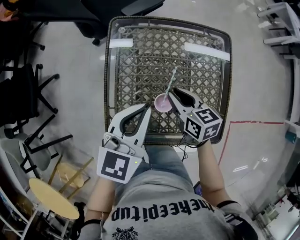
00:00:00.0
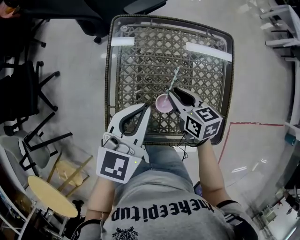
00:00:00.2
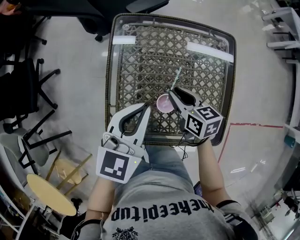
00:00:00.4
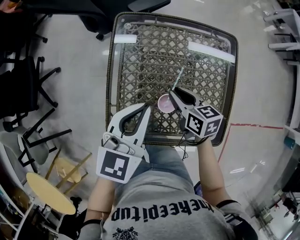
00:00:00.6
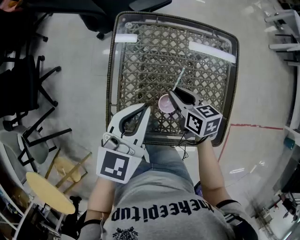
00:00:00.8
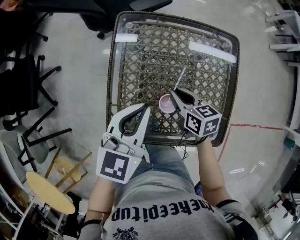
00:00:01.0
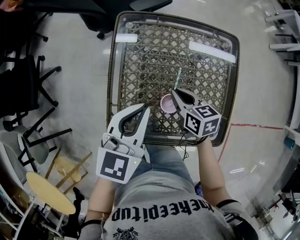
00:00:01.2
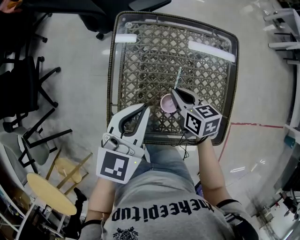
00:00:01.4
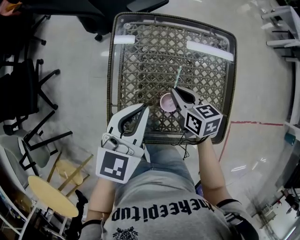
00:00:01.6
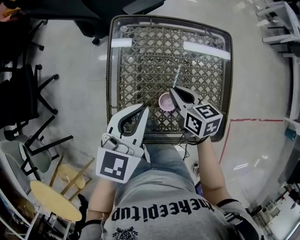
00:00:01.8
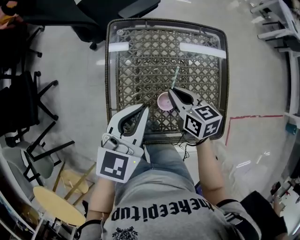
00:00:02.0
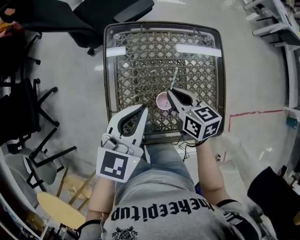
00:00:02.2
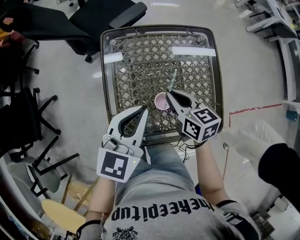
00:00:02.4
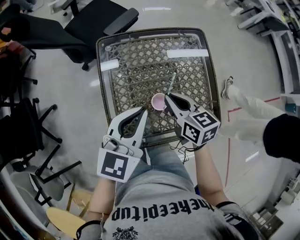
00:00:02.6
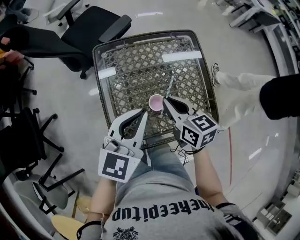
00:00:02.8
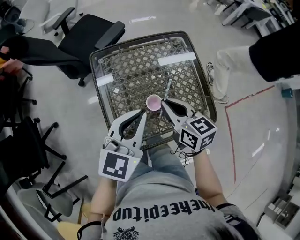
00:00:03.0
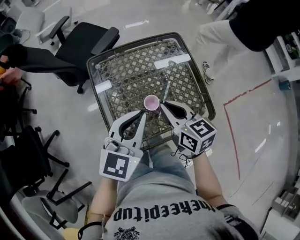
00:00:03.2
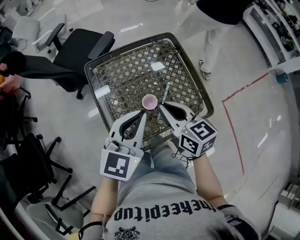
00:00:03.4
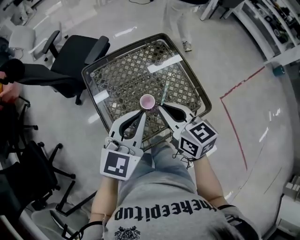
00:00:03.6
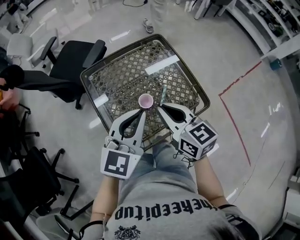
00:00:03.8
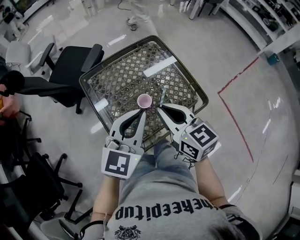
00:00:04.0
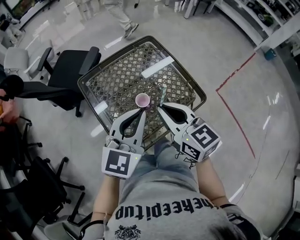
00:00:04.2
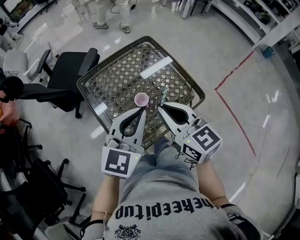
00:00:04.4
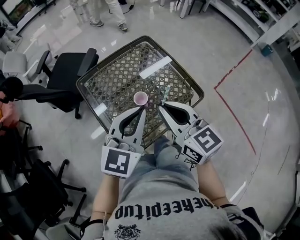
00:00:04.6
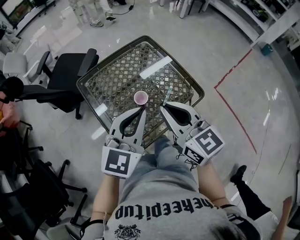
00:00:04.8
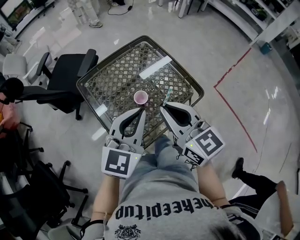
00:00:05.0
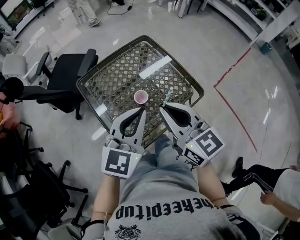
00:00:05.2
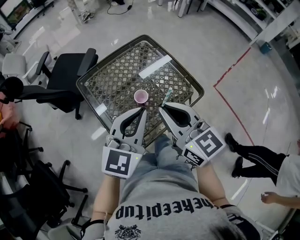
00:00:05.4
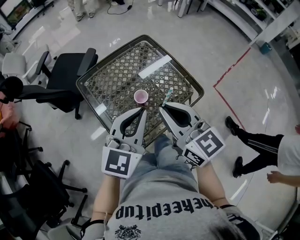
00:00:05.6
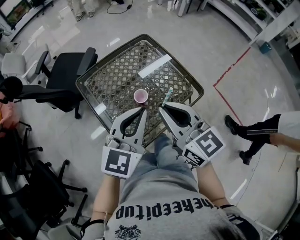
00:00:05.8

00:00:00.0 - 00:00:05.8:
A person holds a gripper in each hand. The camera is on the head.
00:00:00.0 - 00:00:01.4: The right gripper closes.
00:00:01.4 - 00:00:02.8: The right gripper moves upward, about 15 cm, and changes its angle by approximately 20 degrees. Meanwhile the left gripper shifts approximately 5 cm upward, and changes its angle by some 20 degrees.
00:00:02.8 - 00:00:04.4: The right gripper is displaced upward and backward by roughly 20 cm, and turns by roughly 30 degrees. Meanwhile the left gripper shifts approximately 10 cm upward and backward, and turns by approximately 20 degrees.
00:00:04.4 - 00:00:05.8: The grippers move only a little.

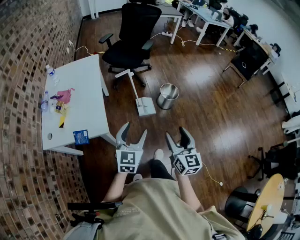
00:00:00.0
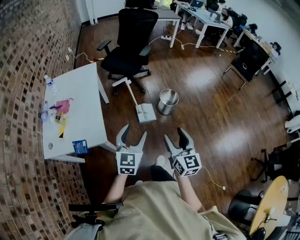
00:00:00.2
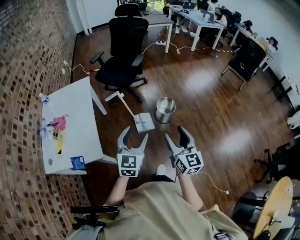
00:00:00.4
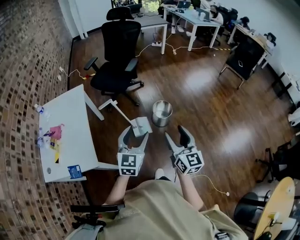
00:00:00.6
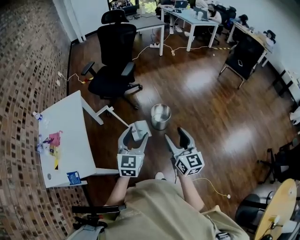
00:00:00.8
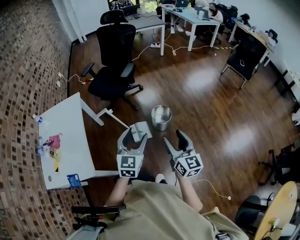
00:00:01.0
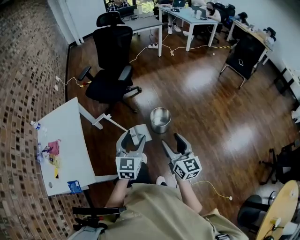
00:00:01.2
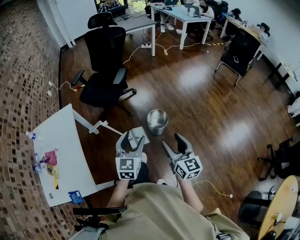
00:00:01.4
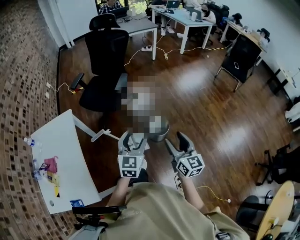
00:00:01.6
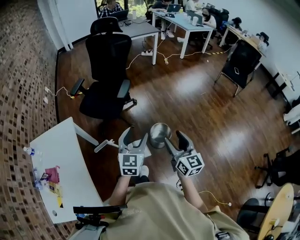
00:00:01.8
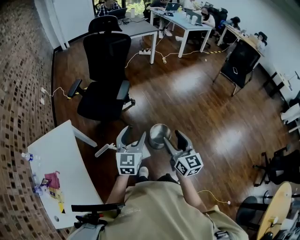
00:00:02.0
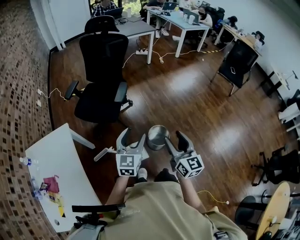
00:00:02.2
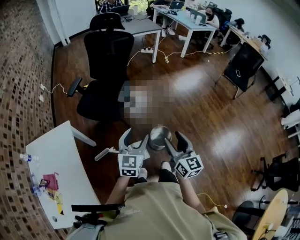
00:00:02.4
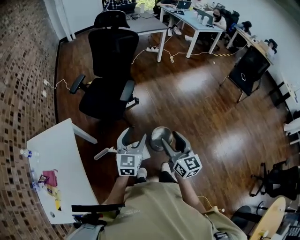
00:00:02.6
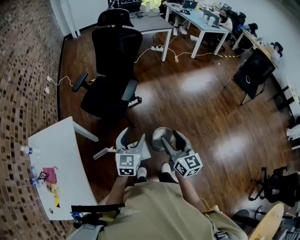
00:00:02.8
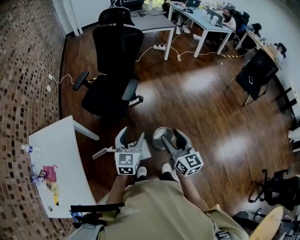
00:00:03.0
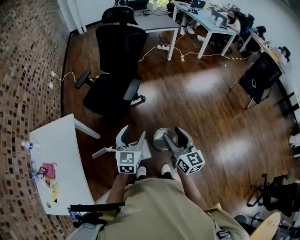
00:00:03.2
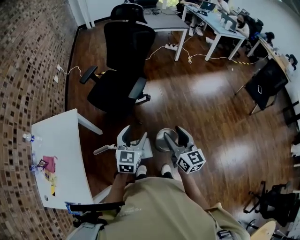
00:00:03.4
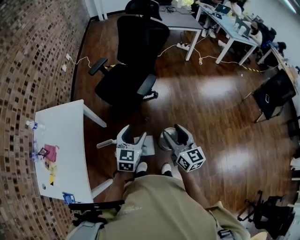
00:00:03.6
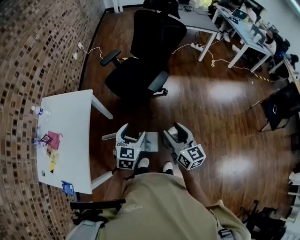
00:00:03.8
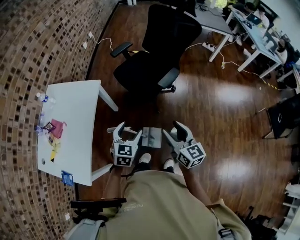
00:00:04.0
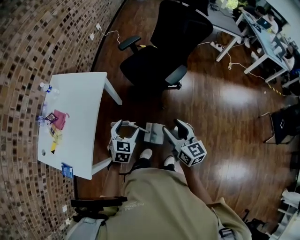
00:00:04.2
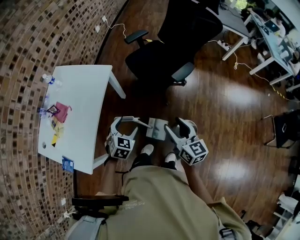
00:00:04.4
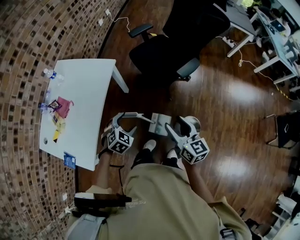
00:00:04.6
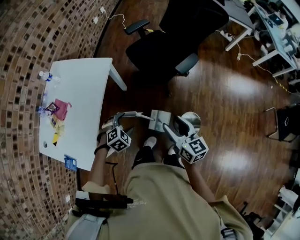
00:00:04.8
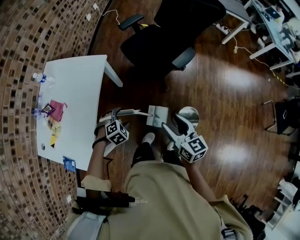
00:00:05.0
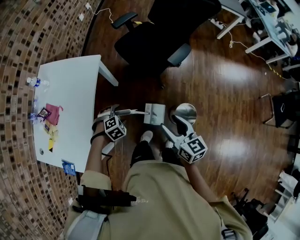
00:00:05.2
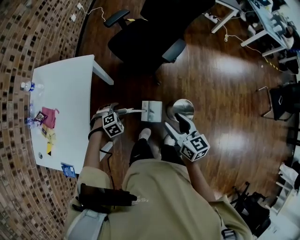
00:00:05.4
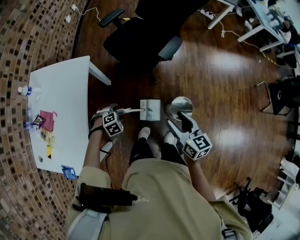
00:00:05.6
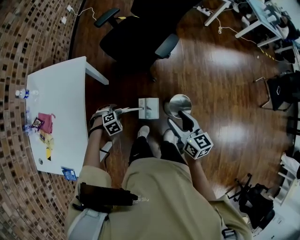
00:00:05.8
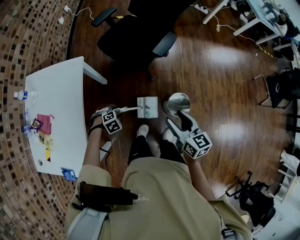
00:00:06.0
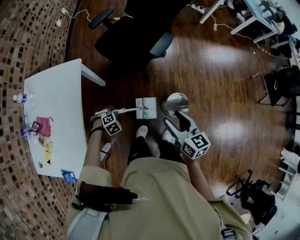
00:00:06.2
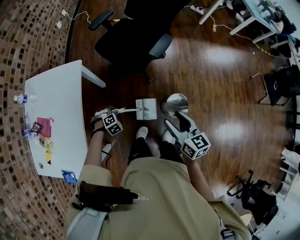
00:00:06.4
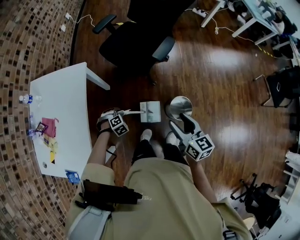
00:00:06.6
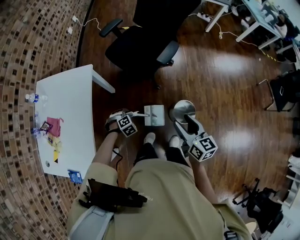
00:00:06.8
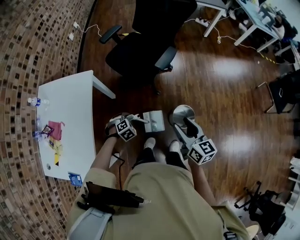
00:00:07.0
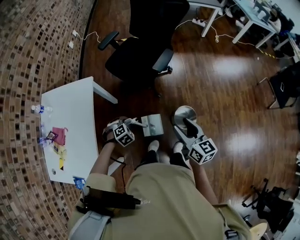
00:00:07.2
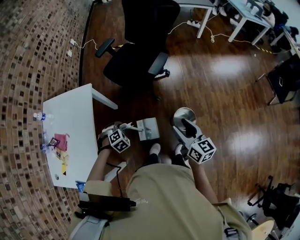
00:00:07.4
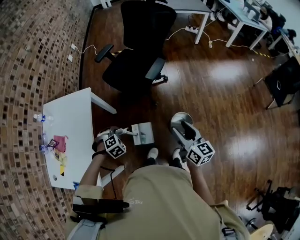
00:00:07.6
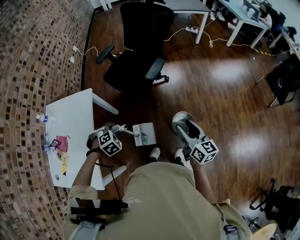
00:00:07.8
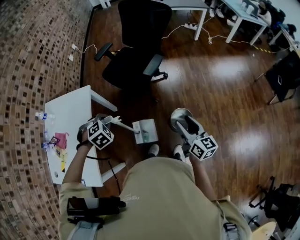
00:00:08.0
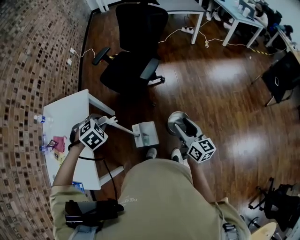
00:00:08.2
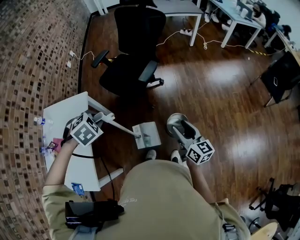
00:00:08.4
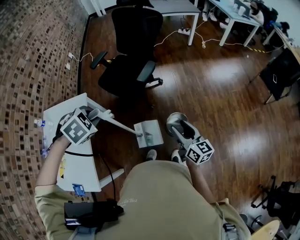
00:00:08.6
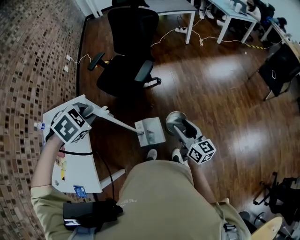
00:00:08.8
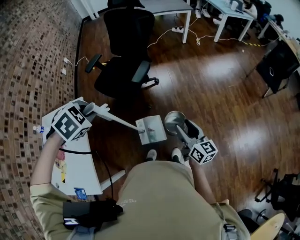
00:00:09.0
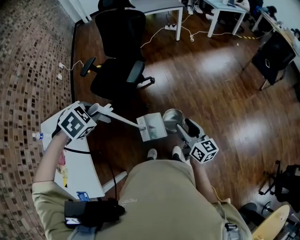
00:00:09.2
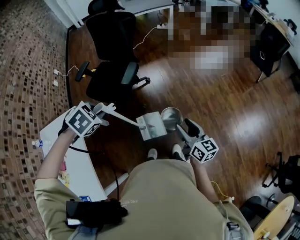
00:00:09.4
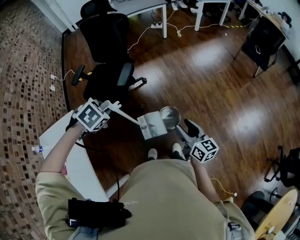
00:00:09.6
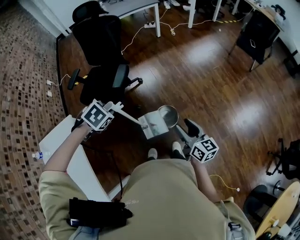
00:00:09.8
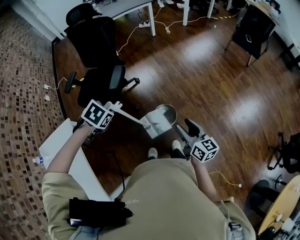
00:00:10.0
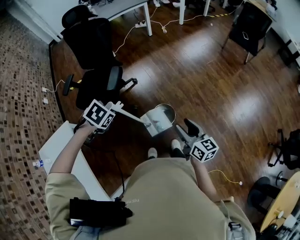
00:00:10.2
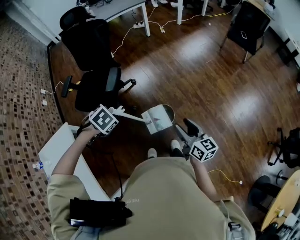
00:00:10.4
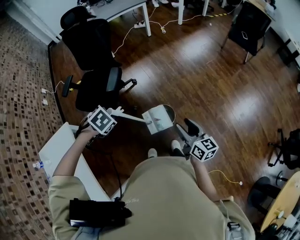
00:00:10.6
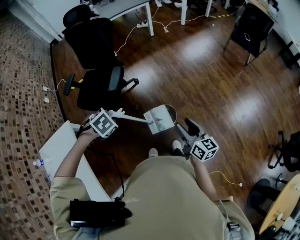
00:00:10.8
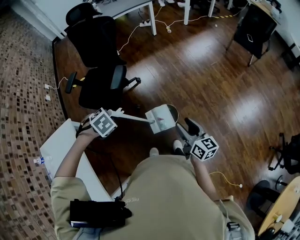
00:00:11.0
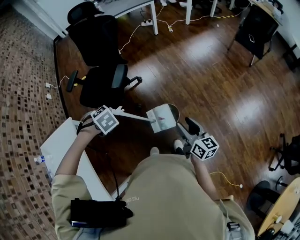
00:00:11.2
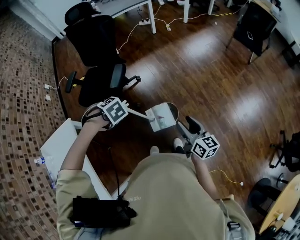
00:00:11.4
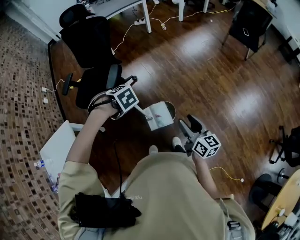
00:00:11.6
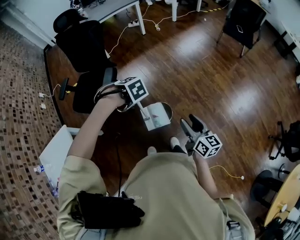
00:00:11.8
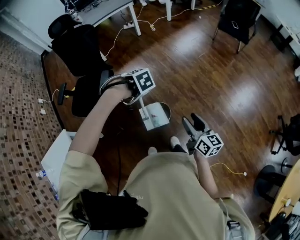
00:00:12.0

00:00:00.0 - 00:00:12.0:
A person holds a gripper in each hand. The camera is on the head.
00:00:00.0 - 00:00:01.6: Both grippers move forward and to the right, roughly 40 cm.
00:00:01.6 - 00:00:03.0: Both grippers move forward, roughly 20 cm.
00:00:03.0 - 00:00:04.4: The left gripper ends up about 25 cm from where it was, and rotates about 40 degrees; the right gripper changes place by roughly 20 cm, and swivels approximately 30 degrees.
00:00:04.4 - 00:00:06.0: The right gripper goes roughly 5 cm downward; the left gripper is displaced downward by approximately 20 cm, and tips its fingers downward by some 40 degrees.
00:00:06.0 - 00:00:07.6: The left gripper heads upward, covering approximately 15 cm, and closes up. Meanwhile the right gripper shifts by approximately 10 cm.
00:00:07.6 - 00:00:09.0: The right gripper travels to the right by about 10 cm. The left gripper is displaced upward by about 30 cm.
00:00:09.0 - 00:00:10.4: The right gripper changes place by some 10 cm. Meanwhile the left gripper shifts about 15 cm downward.
00:00:10.4 - 00:00:12.0: The left gripper shifts by some 15 cm, and swivels some 30 degrees; the right gripper ends up roughly 10 cm from where it was.

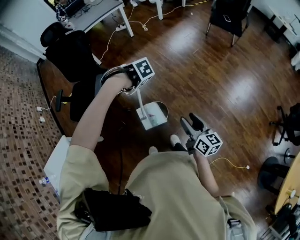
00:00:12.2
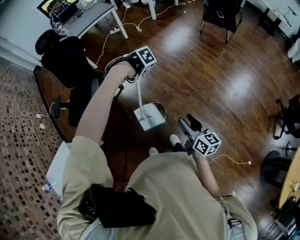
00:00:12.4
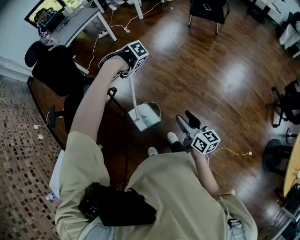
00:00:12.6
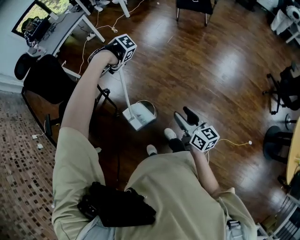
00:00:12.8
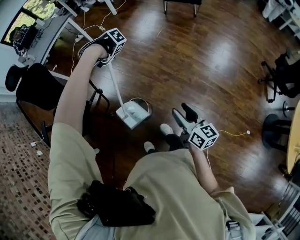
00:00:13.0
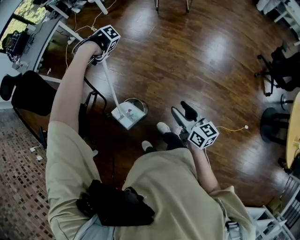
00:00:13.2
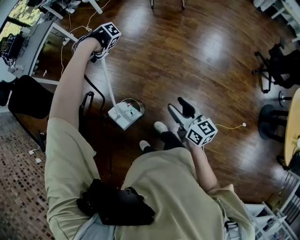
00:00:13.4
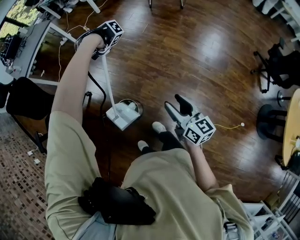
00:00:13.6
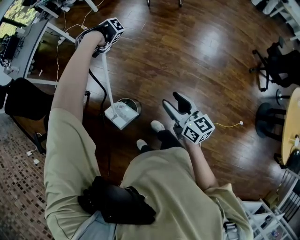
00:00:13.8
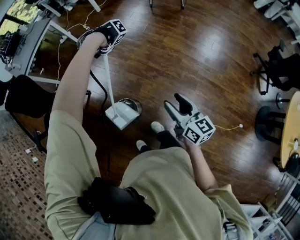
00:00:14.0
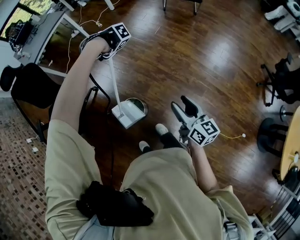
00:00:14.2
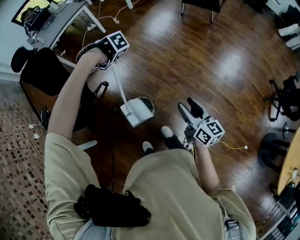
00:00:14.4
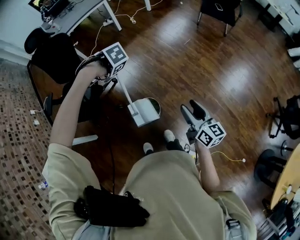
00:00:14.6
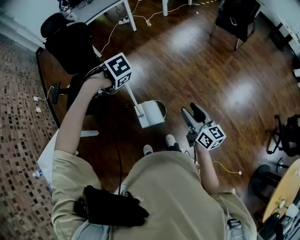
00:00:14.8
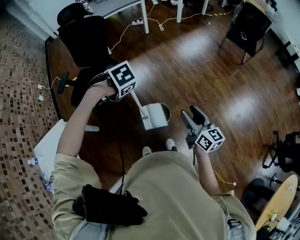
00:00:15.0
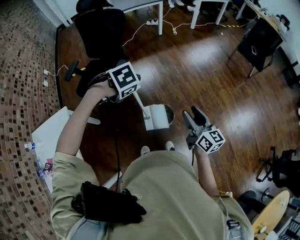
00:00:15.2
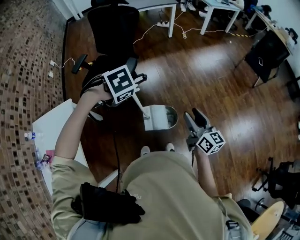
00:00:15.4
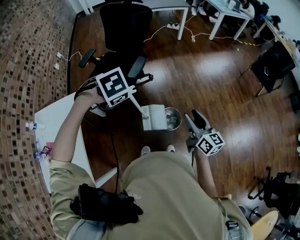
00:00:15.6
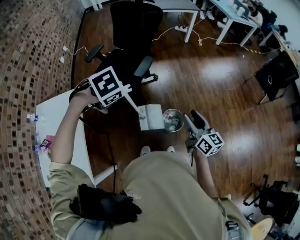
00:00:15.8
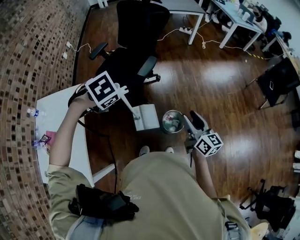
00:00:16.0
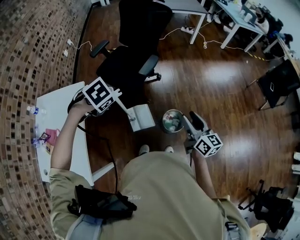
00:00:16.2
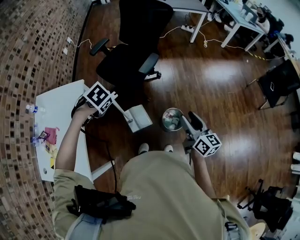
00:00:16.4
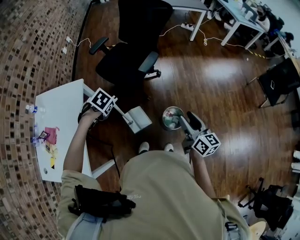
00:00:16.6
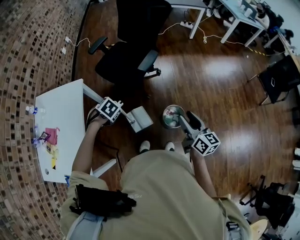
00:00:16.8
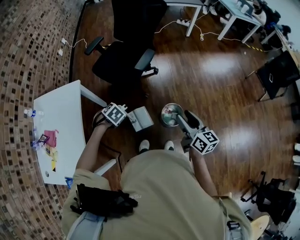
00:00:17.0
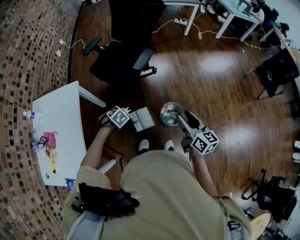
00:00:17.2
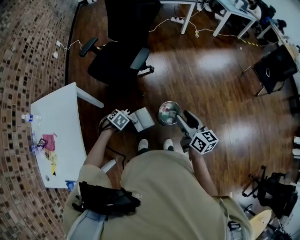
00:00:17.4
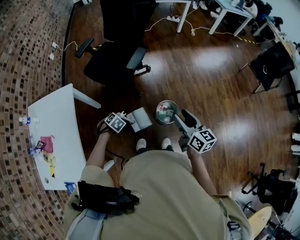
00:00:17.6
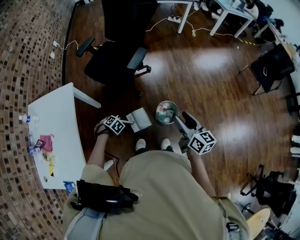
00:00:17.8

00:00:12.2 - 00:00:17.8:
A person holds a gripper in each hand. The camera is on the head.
00:00:12.2 - 00:00:13.6: The left gripper shifts approximately 30 cm to the right. Meanwhile the right gripper travels backward and to the right by about 15 cm.
00:00:13.6 - 00:00:15.0: The right gripper moves some 20 cm, and rotates some 30 degrees, while the left gripper changes place by some 35 cm, and points its fingers approximately 30 degrees further downward.
00:00:15.0 - 00:00:16.4: The right gripper shifts by some 20 cm, and swivels about 20 degrees; the left gripper shifts by approximately 30 cm, and changes its angle by roughly 40 degrees.
00:00:16.4 - 00:00:17.8: The left gripper is displaced downward by approximately 30 cm.
